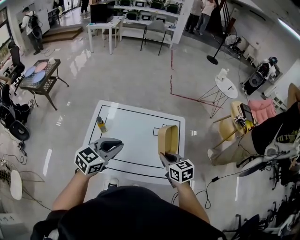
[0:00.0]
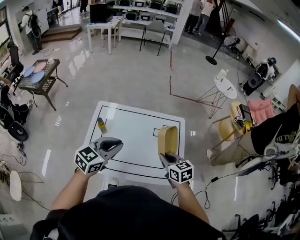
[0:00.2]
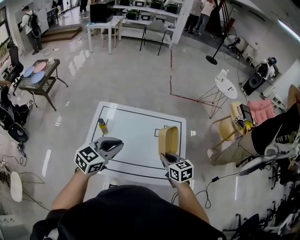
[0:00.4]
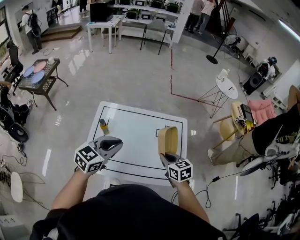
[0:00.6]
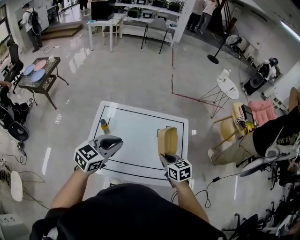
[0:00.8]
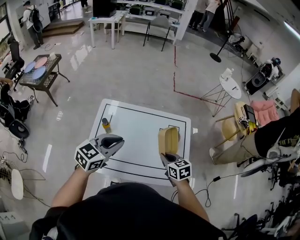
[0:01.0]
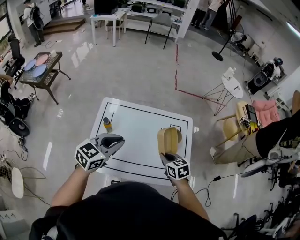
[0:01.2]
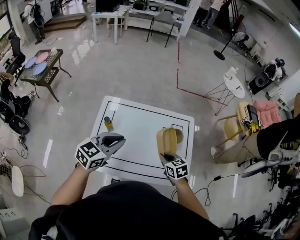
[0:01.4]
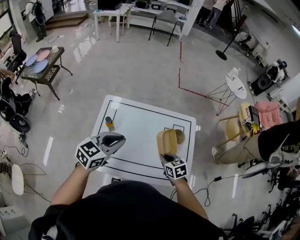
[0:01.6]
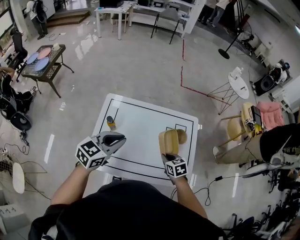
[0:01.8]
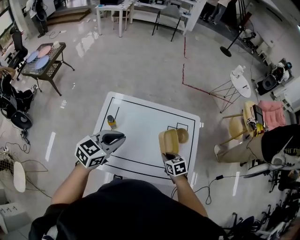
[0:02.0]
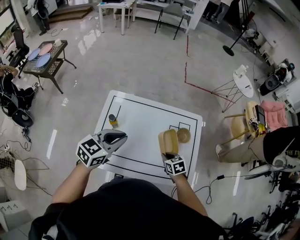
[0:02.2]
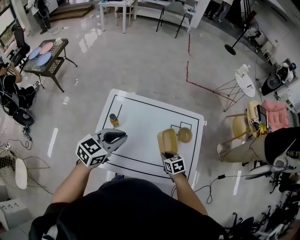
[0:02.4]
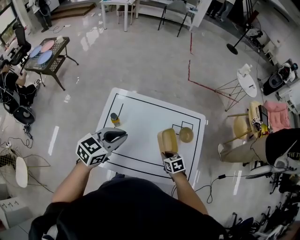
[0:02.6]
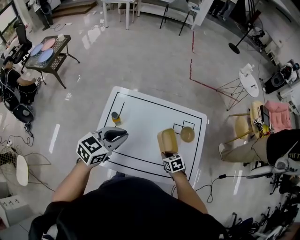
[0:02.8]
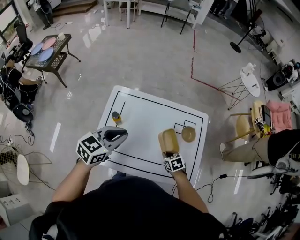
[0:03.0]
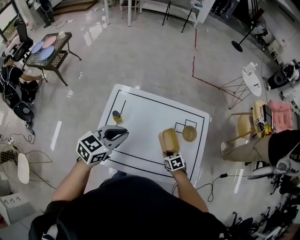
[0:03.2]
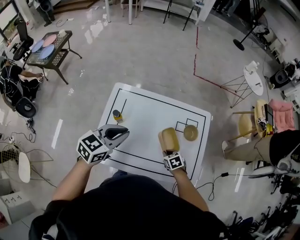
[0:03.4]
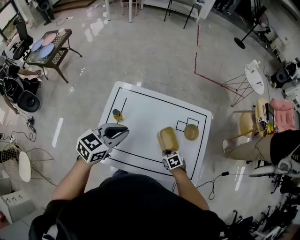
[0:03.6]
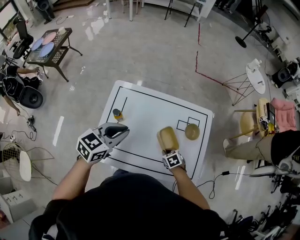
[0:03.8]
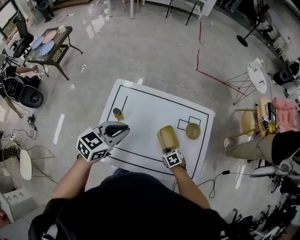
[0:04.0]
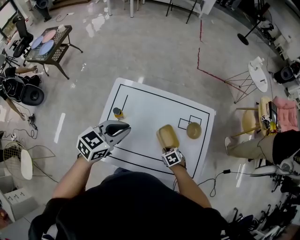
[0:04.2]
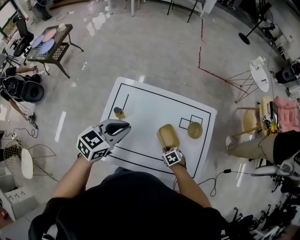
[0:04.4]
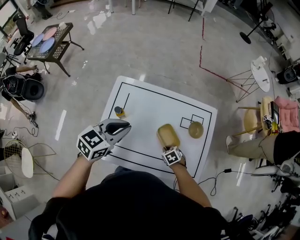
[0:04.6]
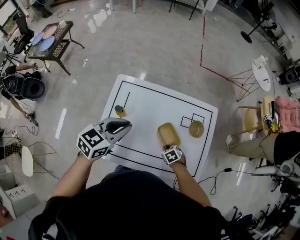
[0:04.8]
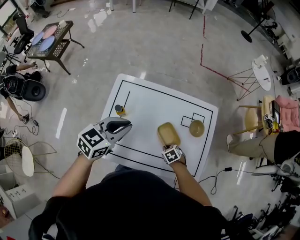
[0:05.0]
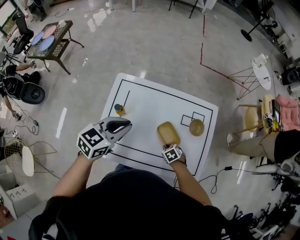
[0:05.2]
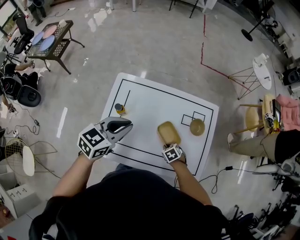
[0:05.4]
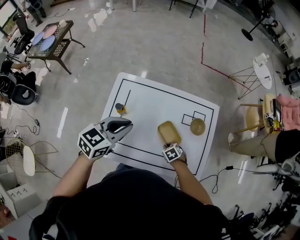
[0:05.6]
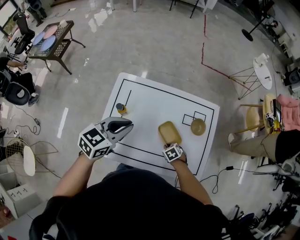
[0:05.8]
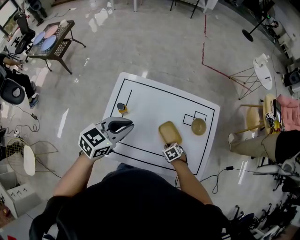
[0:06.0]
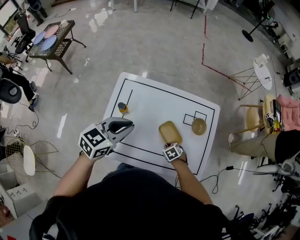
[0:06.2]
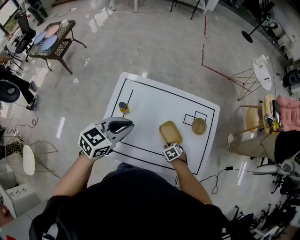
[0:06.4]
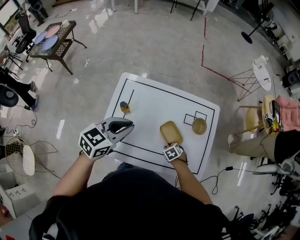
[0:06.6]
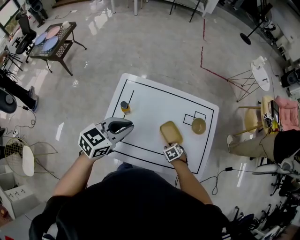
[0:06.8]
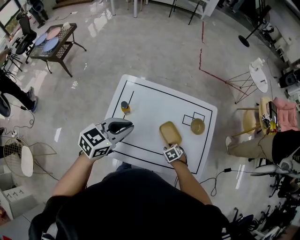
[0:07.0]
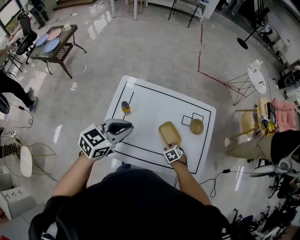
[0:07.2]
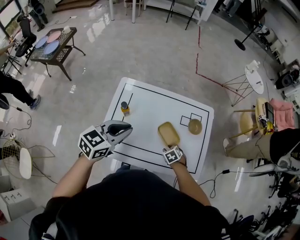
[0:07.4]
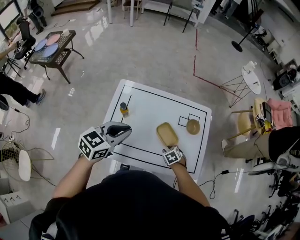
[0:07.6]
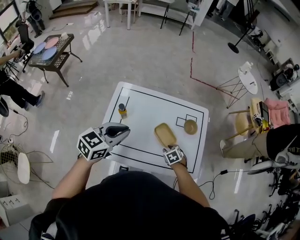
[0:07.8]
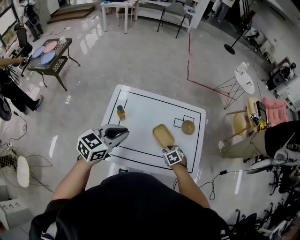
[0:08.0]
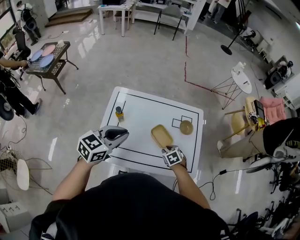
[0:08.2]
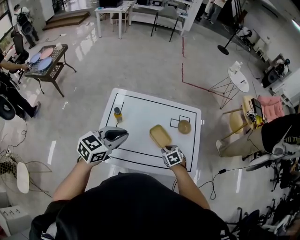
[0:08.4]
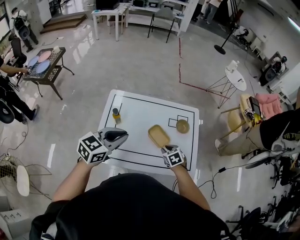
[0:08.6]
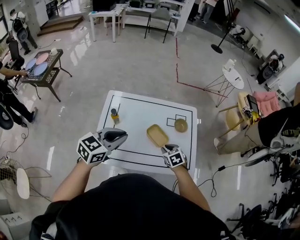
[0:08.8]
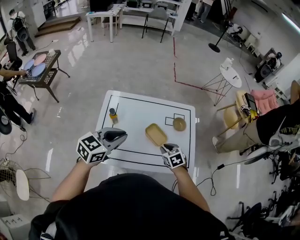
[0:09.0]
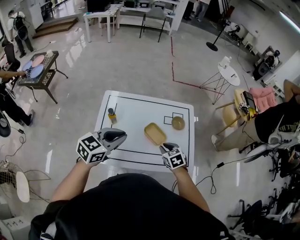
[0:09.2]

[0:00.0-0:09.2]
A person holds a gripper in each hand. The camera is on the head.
0:00.0 to 0:01.6: The left gripper moves to the left and forward, approximately 10 cm. Meanwhile the right gripper shifts about 10 cm downward and to the left.
0:01.6 to 0:03.0: The left gripper ends up roughly 5 cm from where it was. Meanwhile the right gripper heads downward, covering some 15 cm.
0:03.0 to 0:04.6: The right gripper travels downward by some 10 cm.
0:04.6 to 0:06.2: The grippers move only a little.
0:06.2 to 0:07.6: The left gripper moves roughly 5 cm, while the right gripper is displaced upward by about 5 cm, and opens.
0:07.6 to 0:09.2: The right gripper moves upward, roughly 15 cm, and rotates about 20 degrees. The left gripper ends up some 5 cm from where it was.

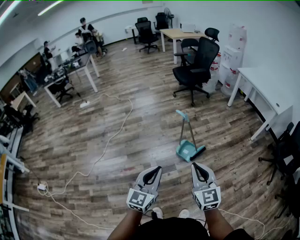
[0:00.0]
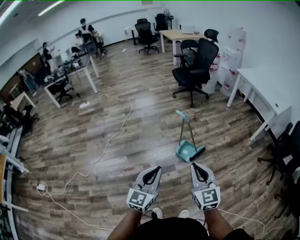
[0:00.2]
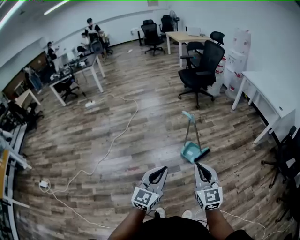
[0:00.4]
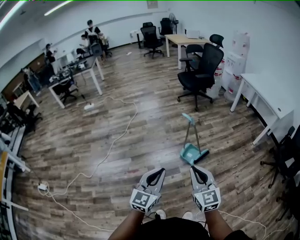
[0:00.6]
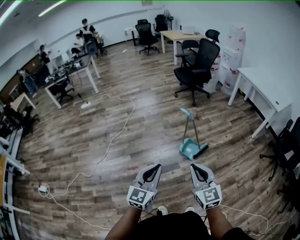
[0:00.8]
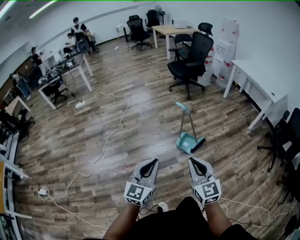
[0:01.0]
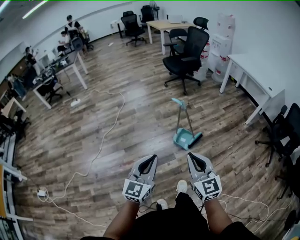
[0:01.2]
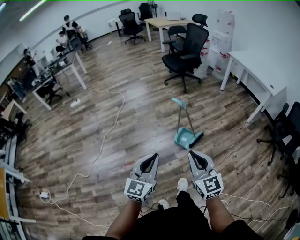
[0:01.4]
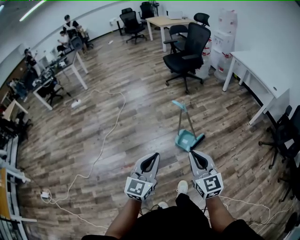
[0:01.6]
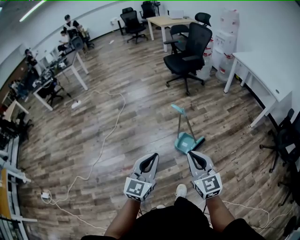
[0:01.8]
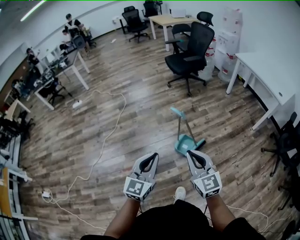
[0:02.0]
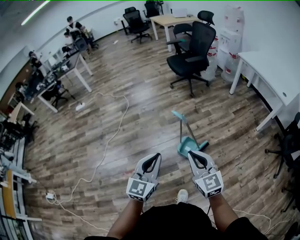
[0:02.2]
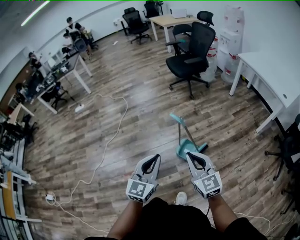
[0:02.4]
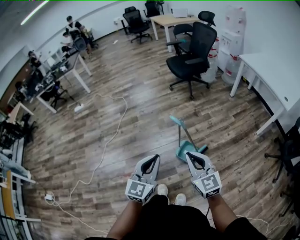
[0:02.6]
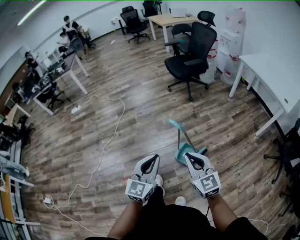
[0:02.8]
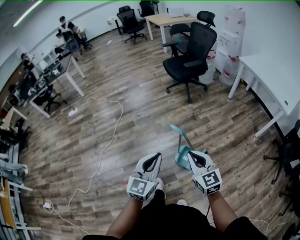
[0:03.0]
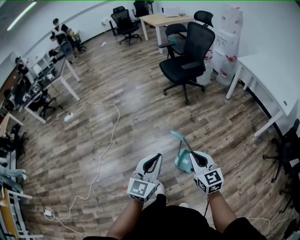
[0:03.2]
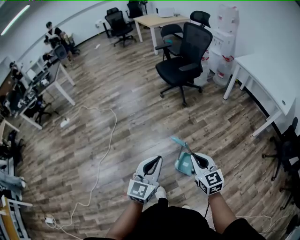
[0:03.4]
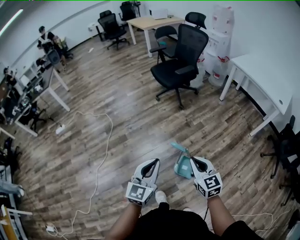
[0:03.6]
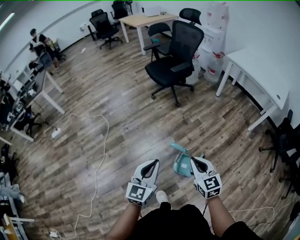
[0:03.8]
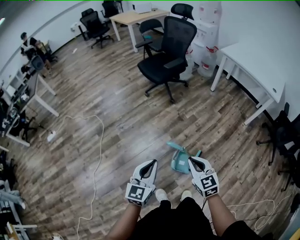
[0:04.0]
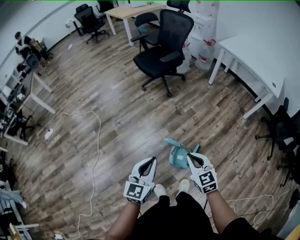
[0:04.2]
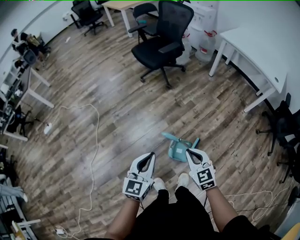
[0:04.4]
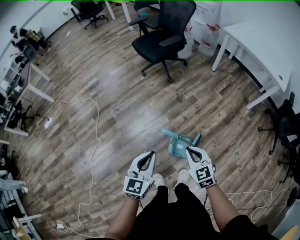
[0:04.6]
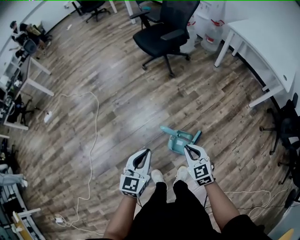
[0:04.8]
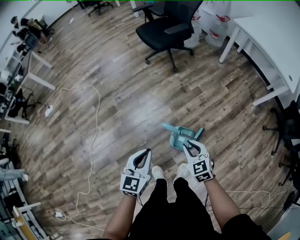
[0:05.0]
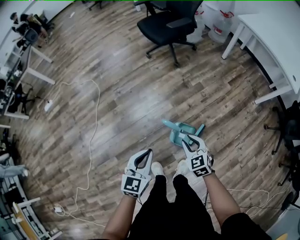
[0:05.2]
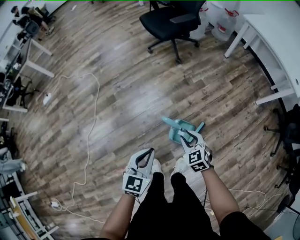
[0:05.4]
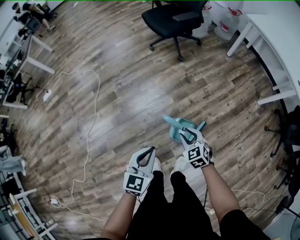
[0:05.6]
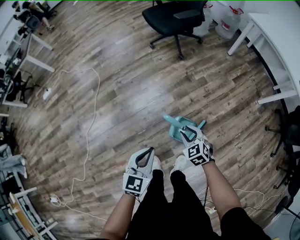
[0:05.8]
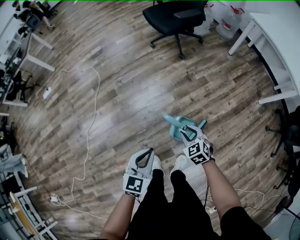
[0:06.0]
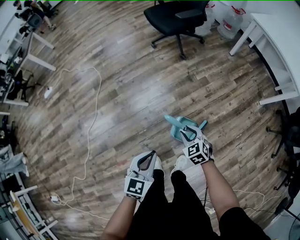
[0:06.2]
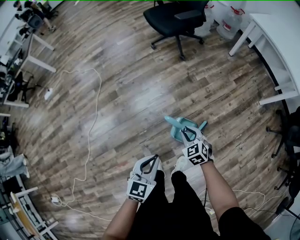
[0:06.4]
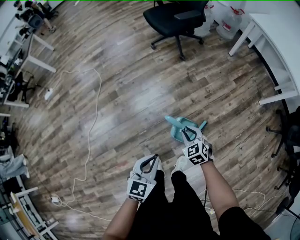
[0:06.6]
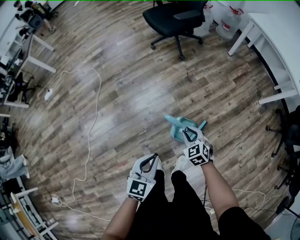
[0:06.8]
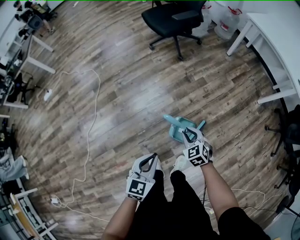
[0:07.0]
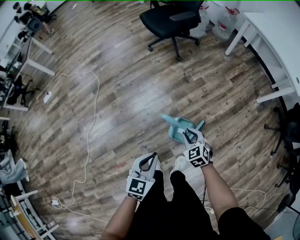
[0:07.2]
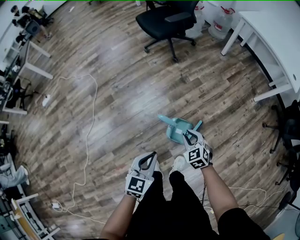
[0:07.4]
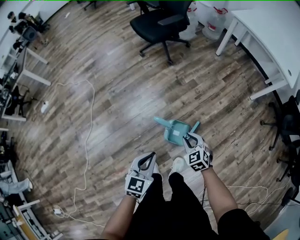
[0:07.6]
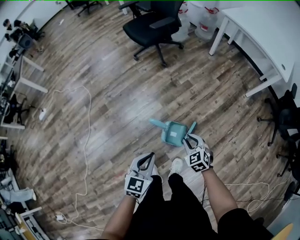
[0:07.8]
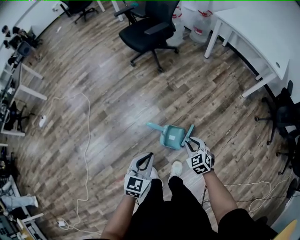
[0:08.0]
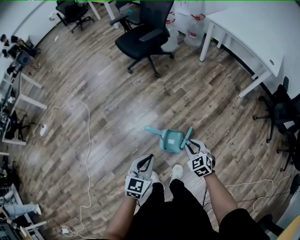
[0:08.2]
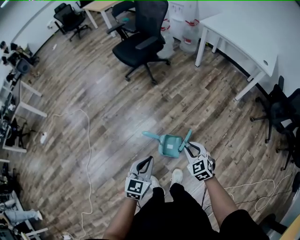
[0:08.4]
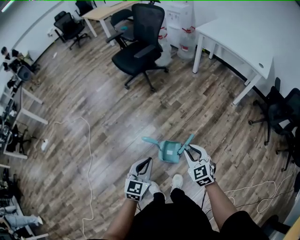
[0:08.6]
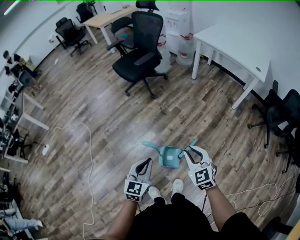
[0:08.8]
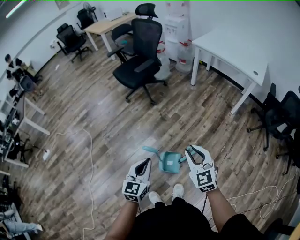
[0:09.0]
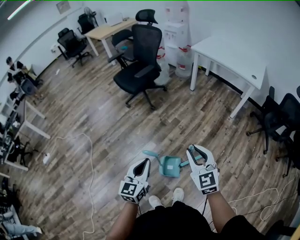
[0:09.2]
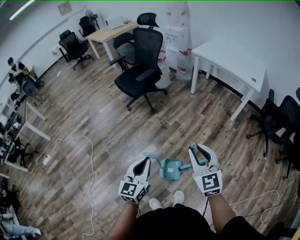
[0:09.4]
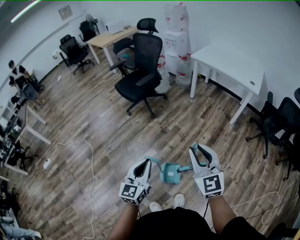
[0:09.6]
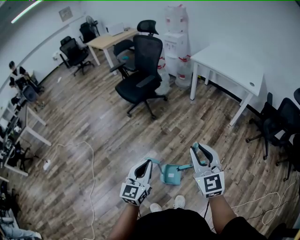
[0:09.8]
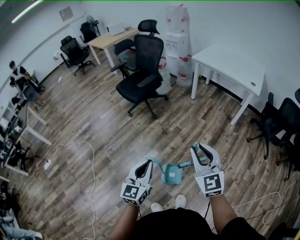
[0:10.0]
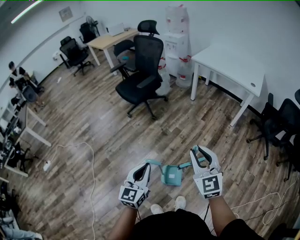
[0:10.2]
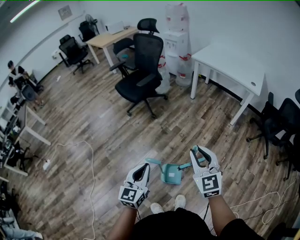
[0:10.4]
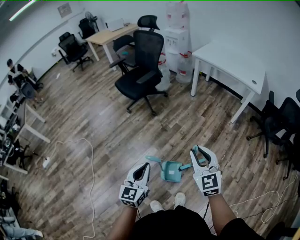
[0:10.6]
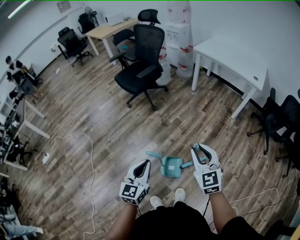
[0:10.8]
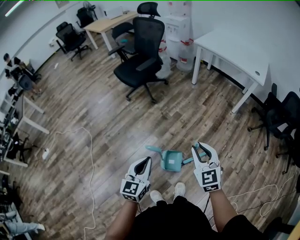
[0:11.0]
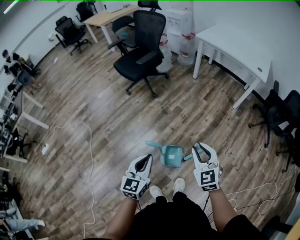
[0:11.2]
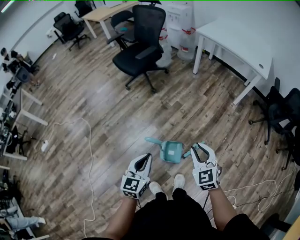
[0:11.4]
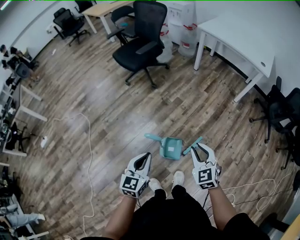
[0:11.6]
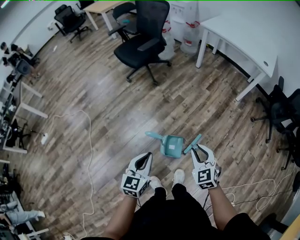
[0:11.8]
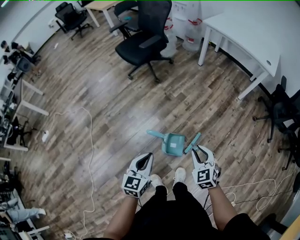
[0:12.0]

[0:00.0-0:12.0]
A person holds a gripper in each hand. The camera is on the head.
0:00.0 to 0:01.6: The right gripper shifts by approximately 5 cm; the left gripper moves forward, approximately 5 cm.
0:01.6 to 0:03.0: The two grippers go about 25 cm forward.
0:03.0 to 0:04.4: The two grippers go approximately 15 cm forward and downward. The right gripper turns by roughly 20 degrees.
0:04.4 to 0:06.0: The right gripper travels downward by roughly 15 cm, turns by roughly 20 degrees, and opens. Meanwhile the left gripper travels downward by about 10 cm.
0:06.0 to 0:07.6: The right gripper goes approximately 5 cm to the right.
0:07.6 to 0:09.0: The right gripper heads upward, covering some 25 cm, and changes its angle by about 30 degrees. Meanwhile the left gripper is displaced upward and forward by some 10 cm.
0:09.0 to 0:10.4: The right gripper moves upward, some 10 cm; the left gripper changes place by roughly 5 cm.
0:10.4 to 0:12.0: The right gripper moves downward, approximately 20 cm, and swivels roughly 30 degrees. The left gripper moves downward, about 10 cm.

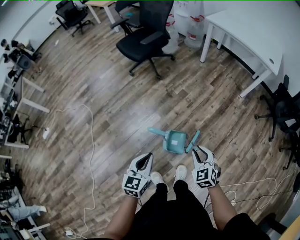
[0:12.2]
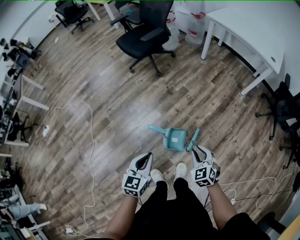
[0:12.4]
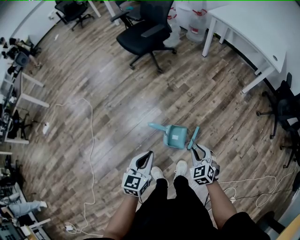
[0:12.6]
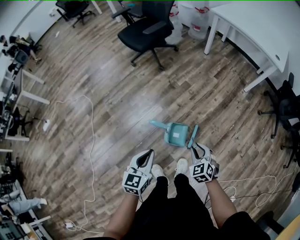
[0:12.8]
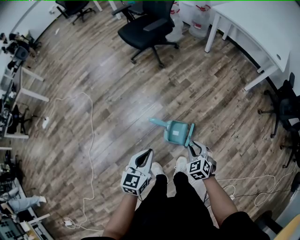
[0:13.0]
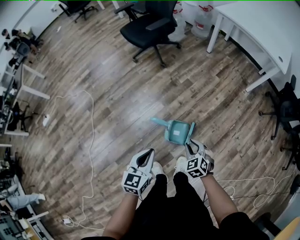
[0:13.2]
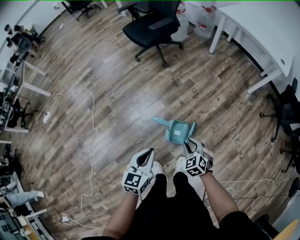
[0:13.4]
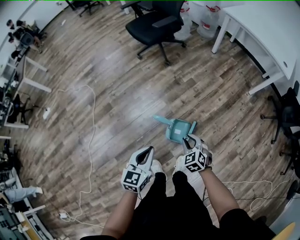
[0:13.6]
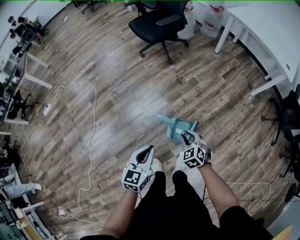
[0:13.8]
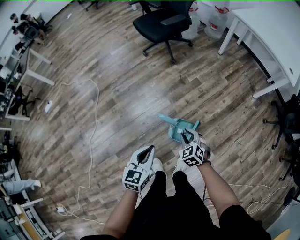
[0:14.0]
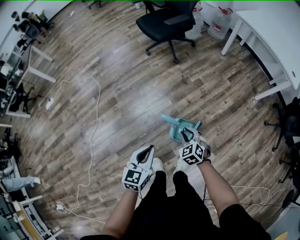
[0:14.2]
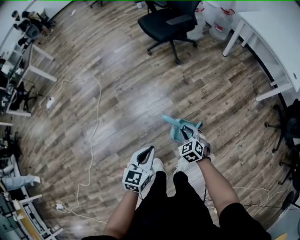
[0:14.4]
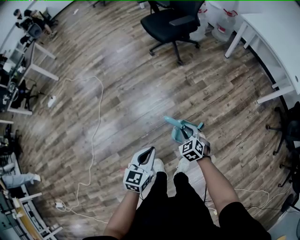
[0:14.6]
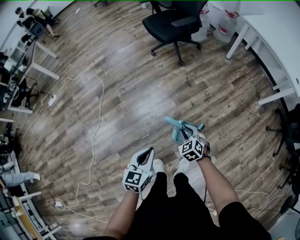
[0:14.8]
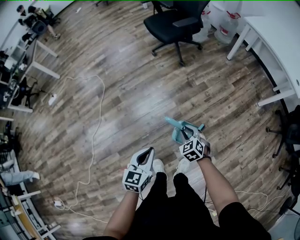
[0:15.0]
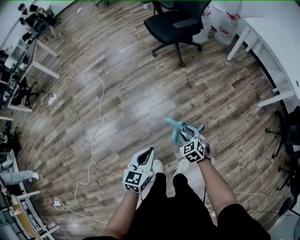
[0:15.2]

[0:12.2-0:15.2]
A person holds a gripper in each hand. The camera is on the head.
0:12.2 to 0:13.8: The right gripper moves to the left and downward, about 10 cm.
0:13.8 to 0:15.2: The right gripper is displaced to the left by about 5 cm.
